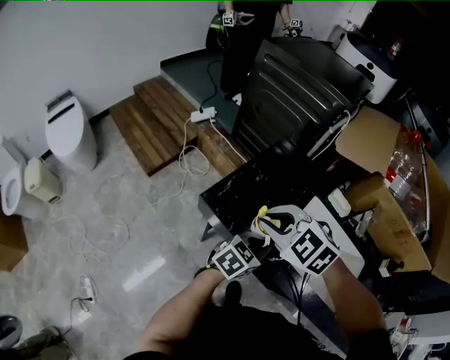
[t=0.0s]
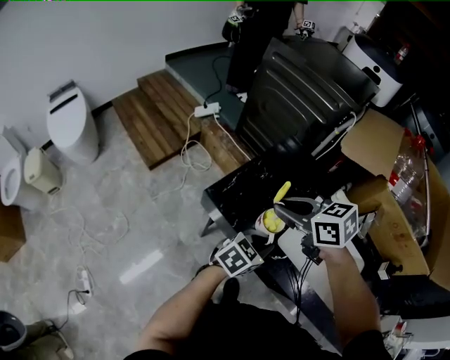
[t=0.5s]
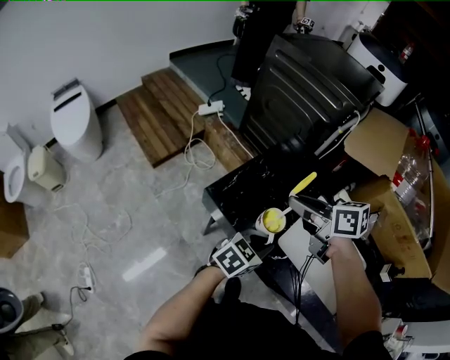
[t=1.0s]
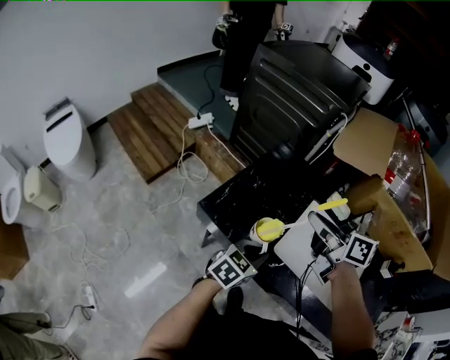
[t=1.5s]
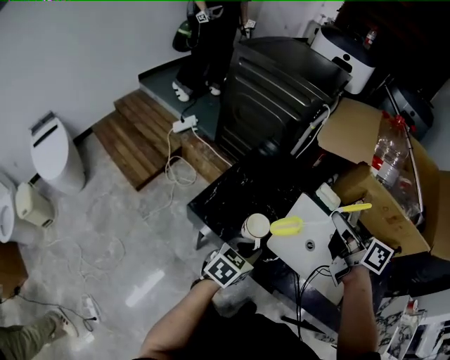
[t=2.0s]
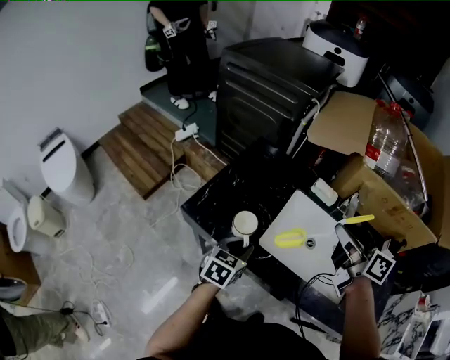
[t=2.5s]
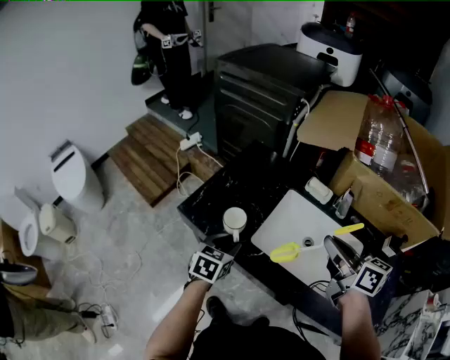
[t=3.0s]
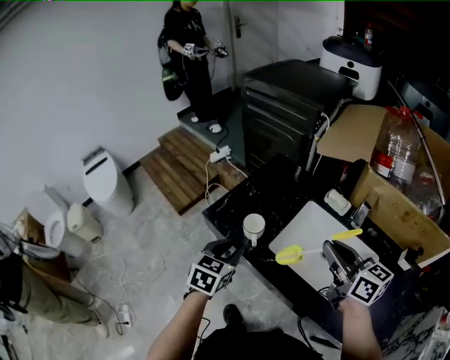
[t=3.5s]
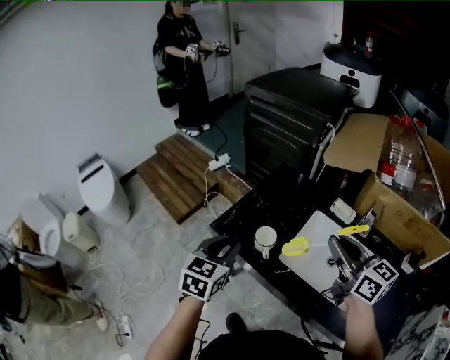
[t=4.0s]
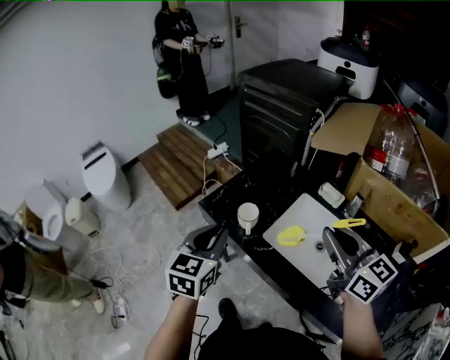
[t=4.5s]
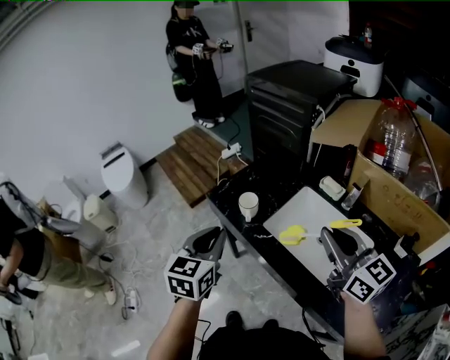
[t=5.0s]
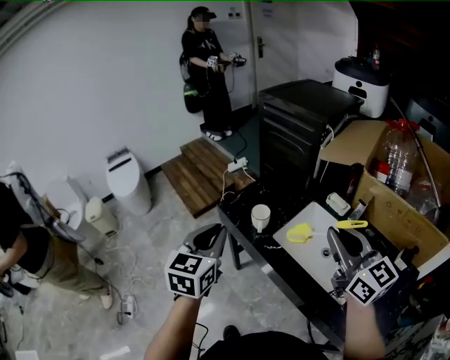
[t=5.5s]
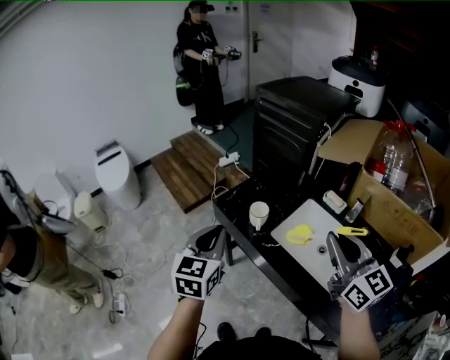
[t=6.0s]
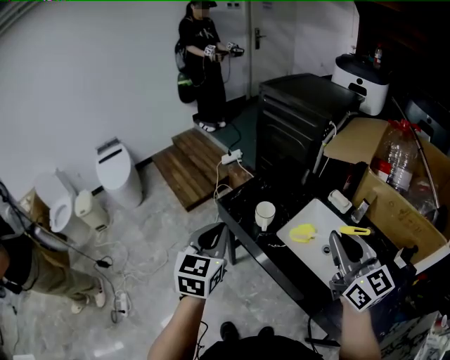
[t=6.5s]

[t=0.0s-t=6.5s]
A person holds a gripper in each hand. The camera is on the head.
t=0.0s to t=2.0s: The right gripper is displaced to the right by roughly 20 cm, and rotates around the line of its fingers by roughly 70 degrees, clockwise from behind.
t=2.0s to t=4.5s: The right gripper moves some 15 cm, and turns by about 30 degrees; the left gripper moves upward, roughly 15 cm, swivels about 40 degrees, and opens and closes again.
t=4.5s to t=6.5s: The left gripper moves to the left, some 5 cm. Meanwhile the right gripper shifts by some 5 cm.

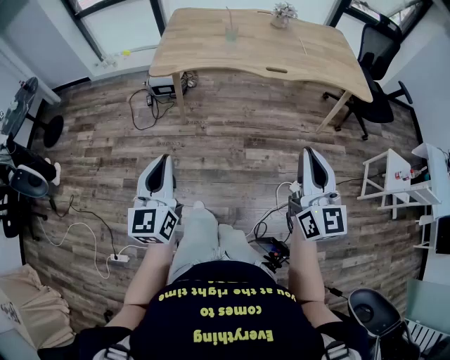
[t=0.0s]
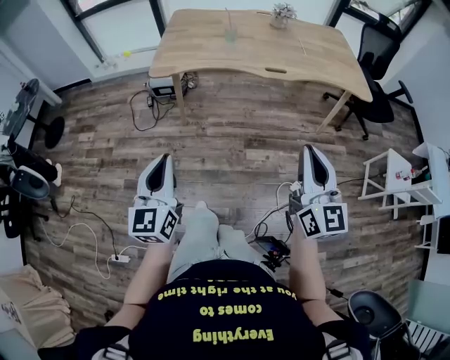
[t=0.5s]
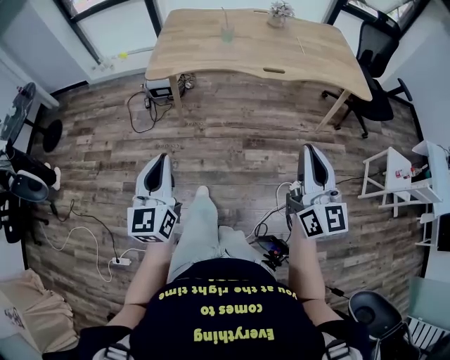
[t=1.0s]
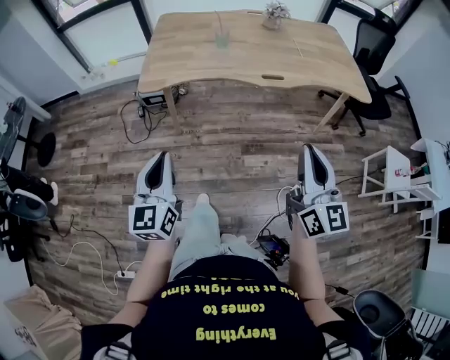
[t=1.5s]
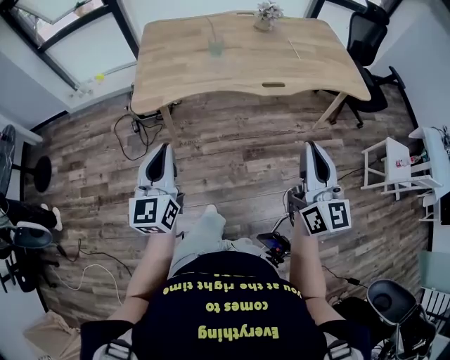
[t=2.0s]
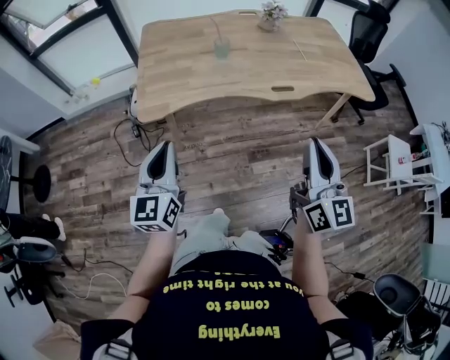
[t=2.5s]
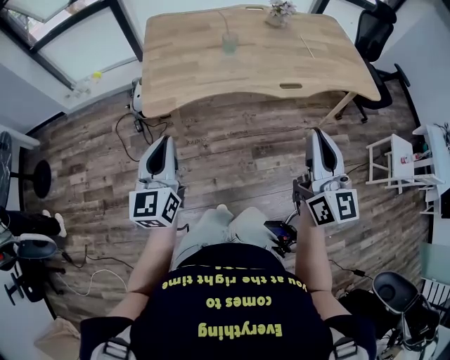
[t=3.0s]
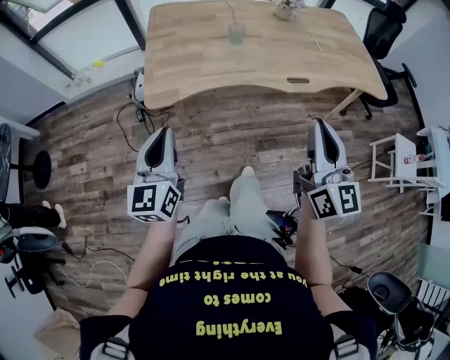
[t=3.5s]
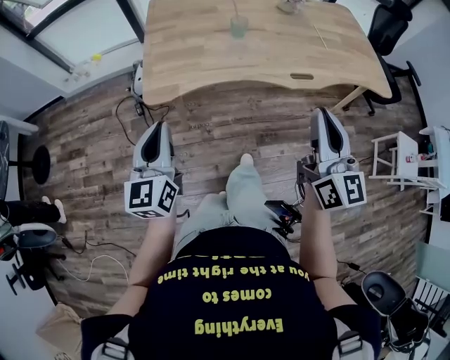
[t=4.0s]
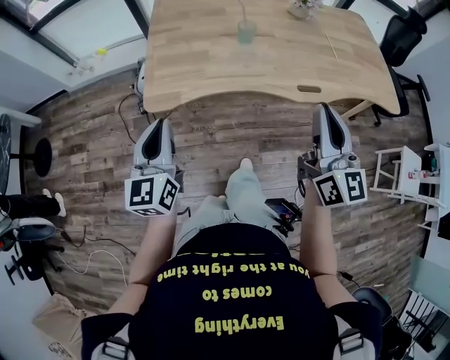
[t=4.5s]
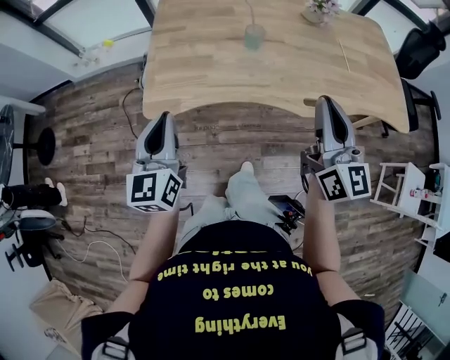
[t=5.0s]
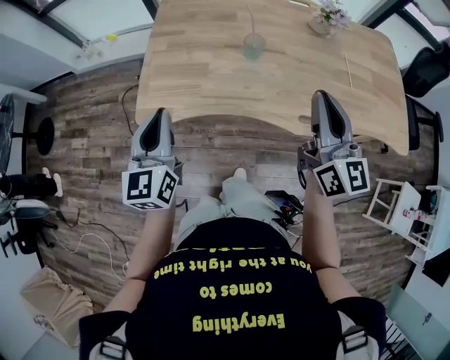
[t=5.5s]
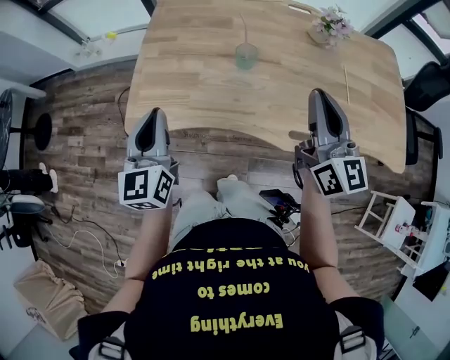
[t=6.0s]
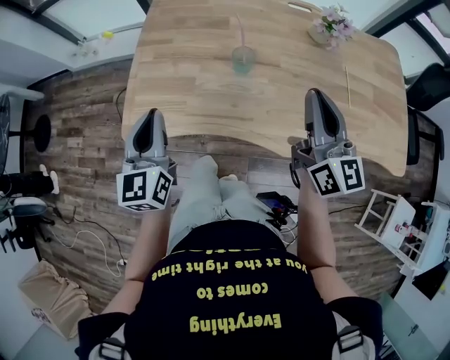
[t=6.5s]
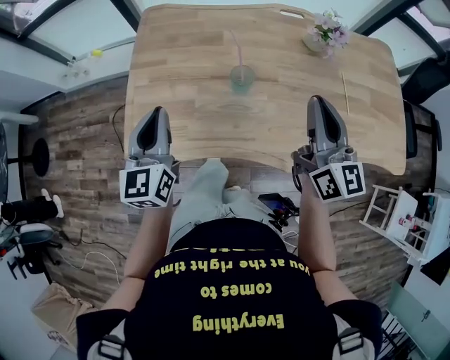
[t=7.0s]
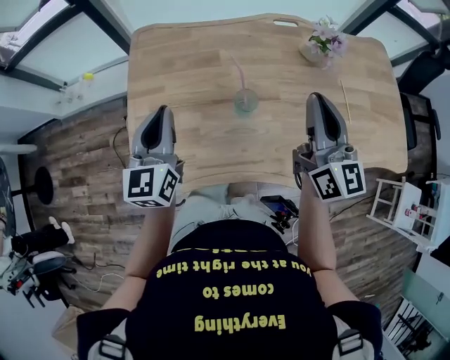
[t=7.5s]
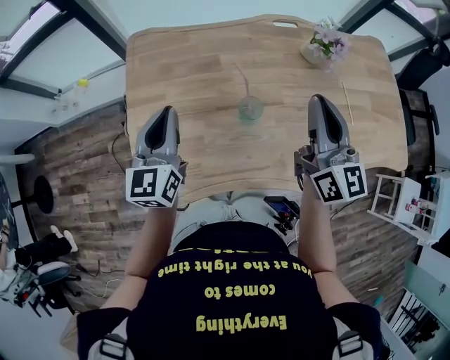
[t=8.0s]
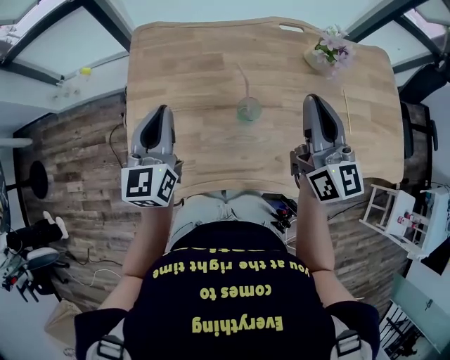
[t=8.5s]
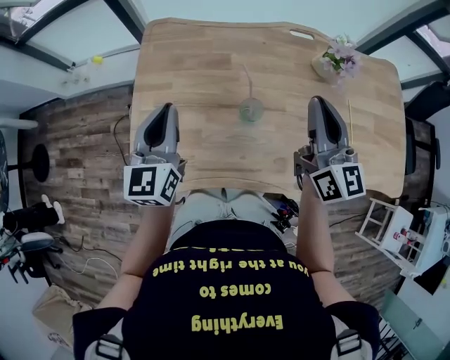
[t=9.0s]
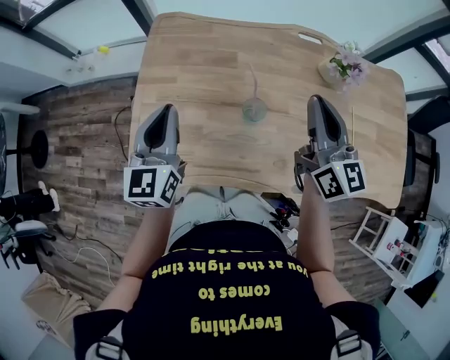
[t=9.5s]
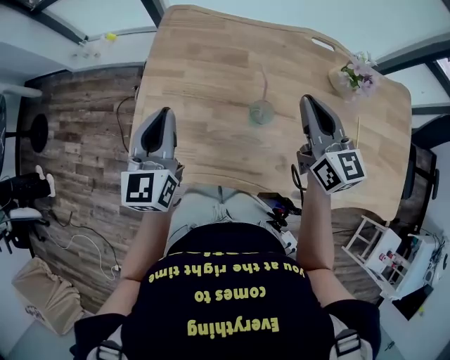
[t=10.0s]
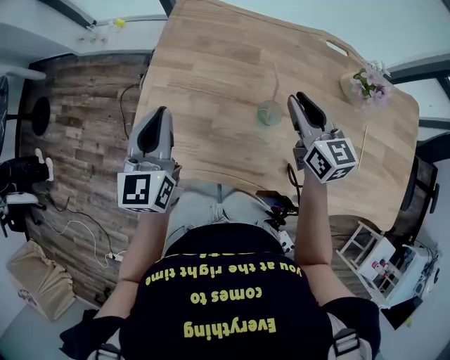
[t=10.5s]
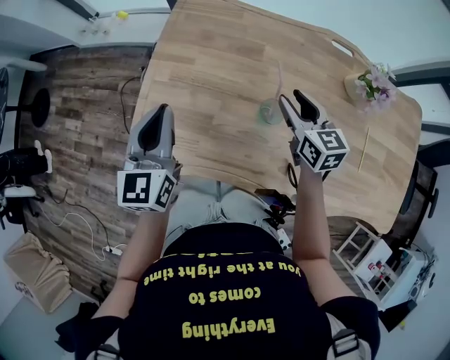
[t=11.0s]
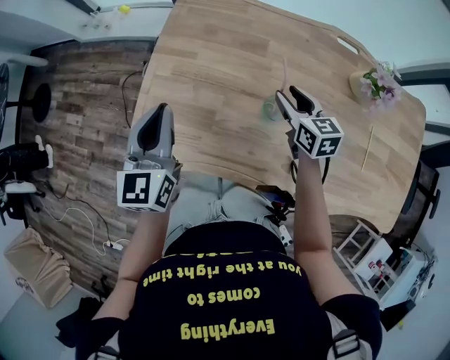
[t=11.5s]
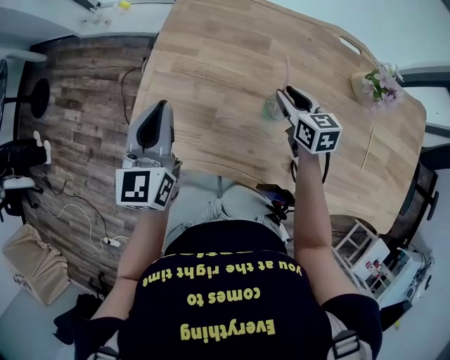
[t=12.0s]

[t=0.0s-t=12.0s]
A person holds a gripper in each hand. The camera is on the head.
t=0.0s to t=2.0s: Both grippers move forward, some 20 cm.
t=2.0s to t=4.0s: Both grippers move forward and to the left, about 15 cm.
t=4.0s to t=6.0s: The right gripper is displaced forward by some 30 cm, while the left gripper shifts about 25 cm forward and to the right.
t=6.0s to t=8.0s: Both grippers move forward, about 20 cm.
t=8.0s to t=10.0s: The left gripper ends up about 5 cm from where it was, while the right gripper shifts about 10 cm forward and downward, and turns by some 30 degrees.
t=10.0s to t=12.0s: The right gripper travels downward by approximately 20 cm, rotates roughly 30 degrees, and opens its fingers.

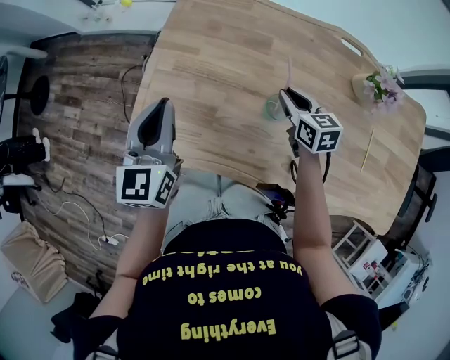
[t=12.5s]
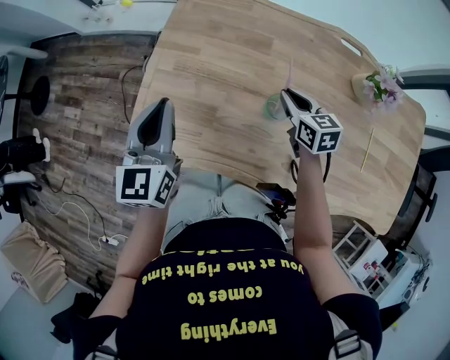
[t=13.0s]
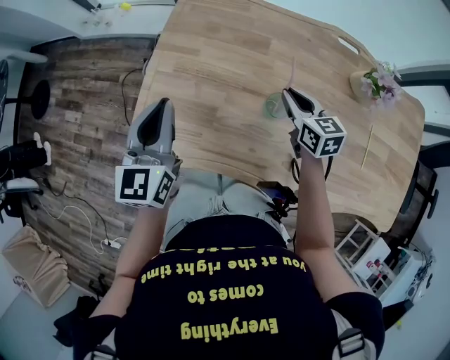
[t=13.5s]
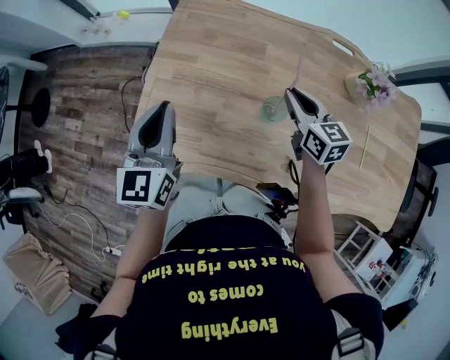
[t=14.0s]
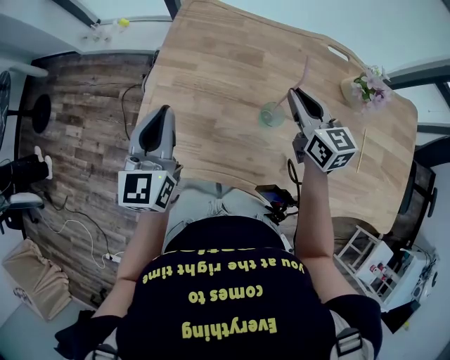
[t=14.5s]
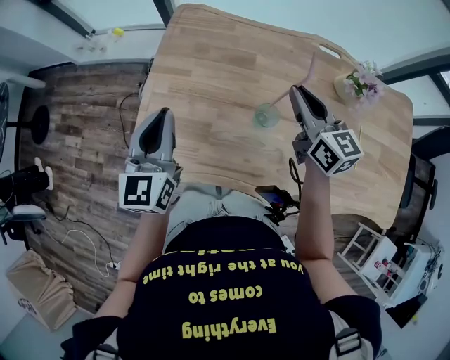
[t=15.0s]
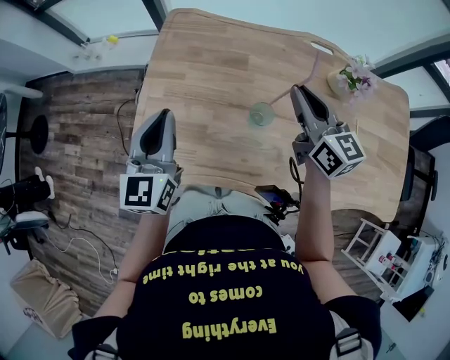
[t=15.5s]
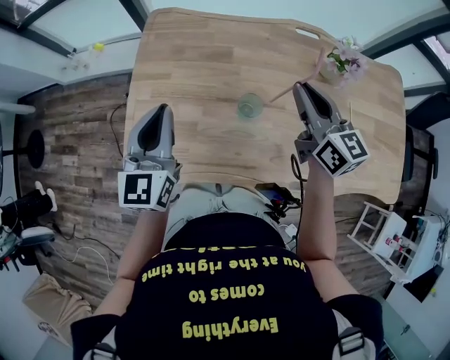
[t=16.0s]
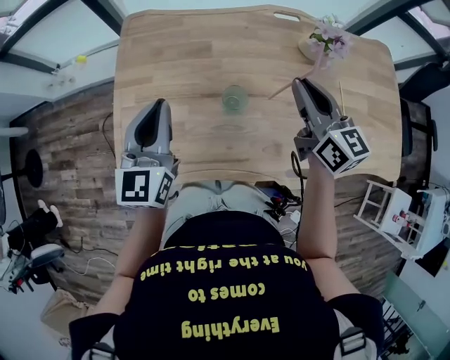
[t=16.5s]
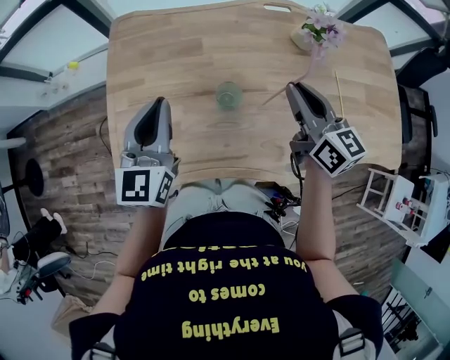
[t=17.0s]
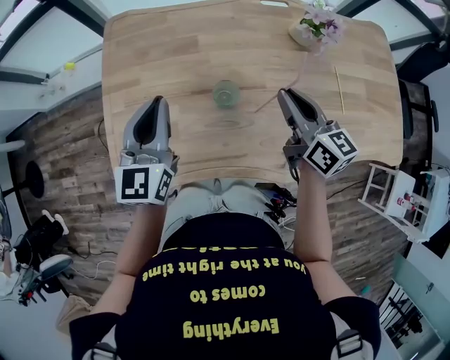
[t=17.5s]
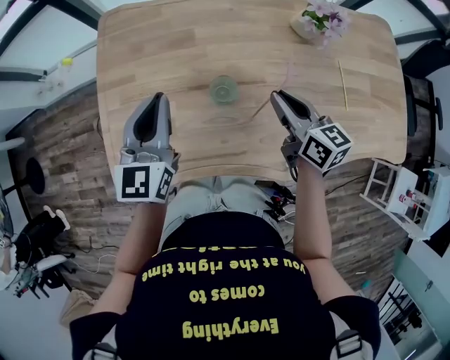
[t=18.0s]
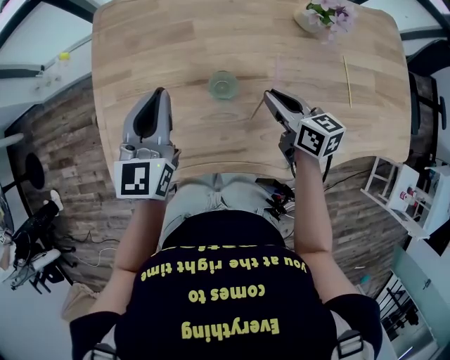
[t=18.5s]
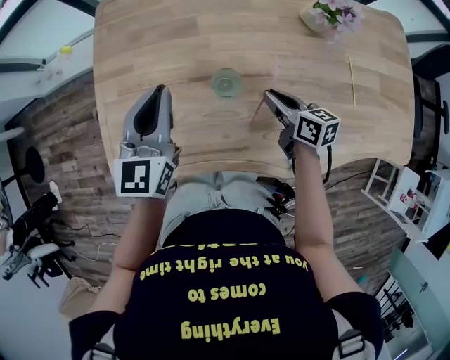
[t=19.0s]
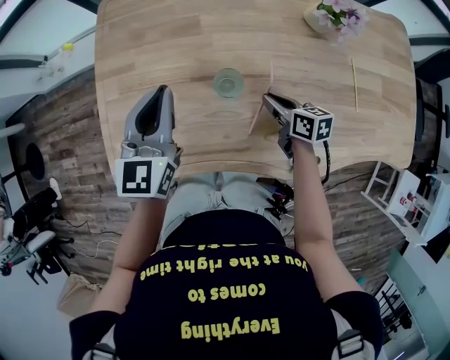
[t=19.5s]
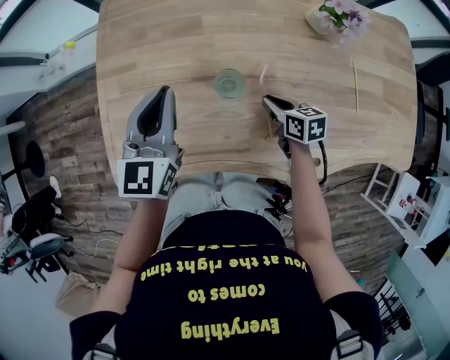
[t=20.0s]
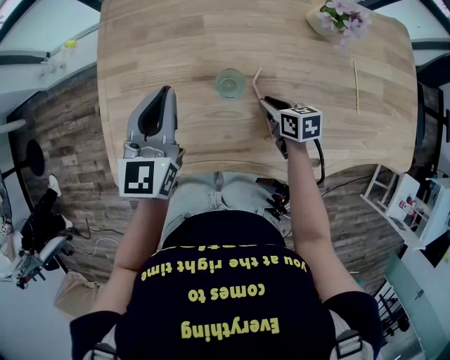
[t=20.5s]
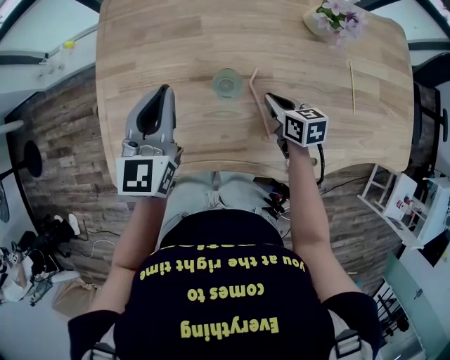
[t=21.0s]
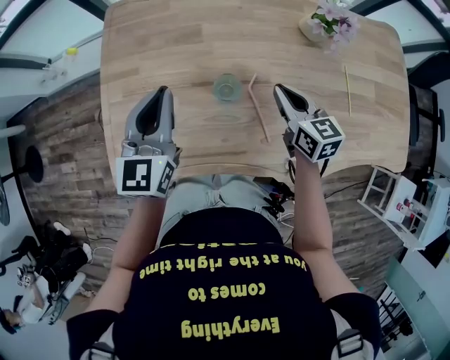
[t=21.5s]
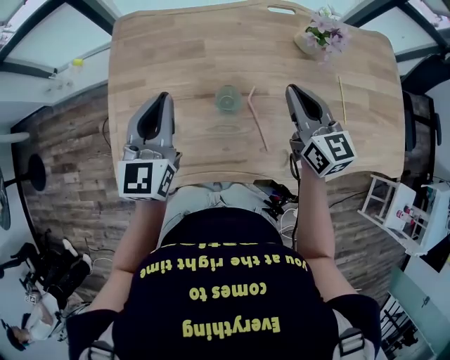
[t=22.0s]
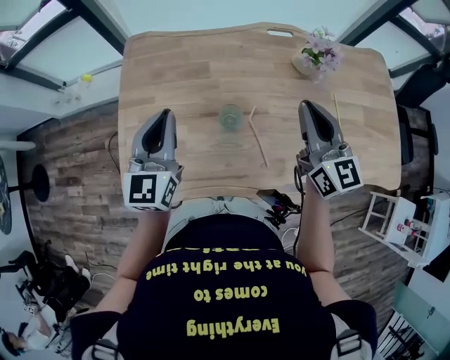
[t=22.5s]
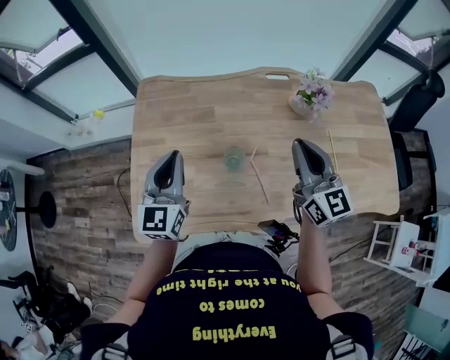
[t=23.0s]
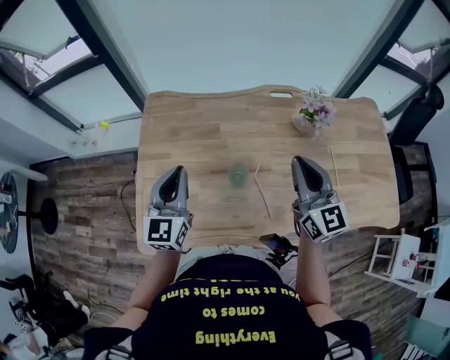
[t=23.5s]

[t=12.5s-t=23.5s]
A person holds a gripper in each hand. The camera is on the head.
t=12.5s to t=14.5s: The right gripper heads upward, covering roughly 10 cm.
t=14.5s to t=16.0s: The right gripper is displaced upward and to the right by approximately 10 cm. Meanwhile the left gripper moves to the right, roughly 5 cm.
t=16.0s to t=18.0s: The right gripper goes roughly 10 cm downward; the left gripper travels to the right by roughly 10 cm.
t=18.0s to t=20.0s: The right gripper moves downward, approximately 20 cm, and turns by approximately 30 degrees.
t=20.0s to t=21.5s: The right gripper moves upward, roughly 15 cm, and swivels roughly 30 degrees.
t=21.5s to t=23.5s: The right gripper moves upward, some 20 cm, and changes its angle by some 30 degrees. The left gripper travels upward by roughly 5 cm.
